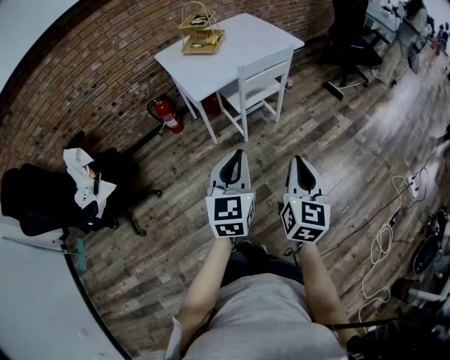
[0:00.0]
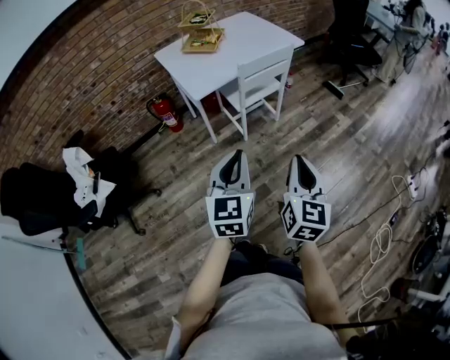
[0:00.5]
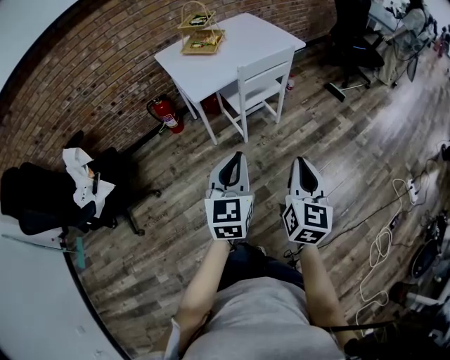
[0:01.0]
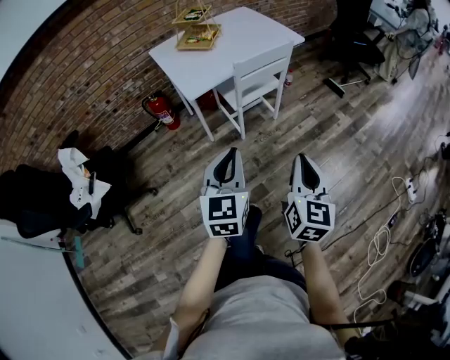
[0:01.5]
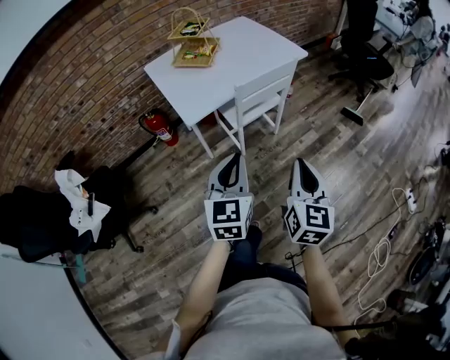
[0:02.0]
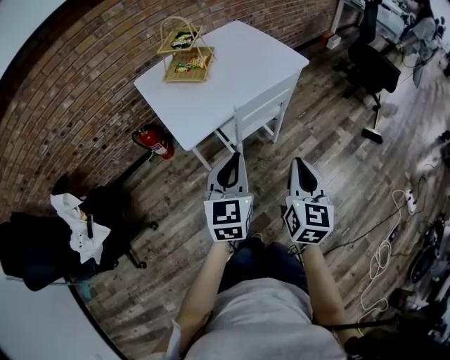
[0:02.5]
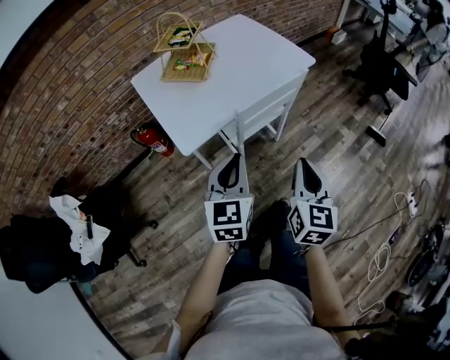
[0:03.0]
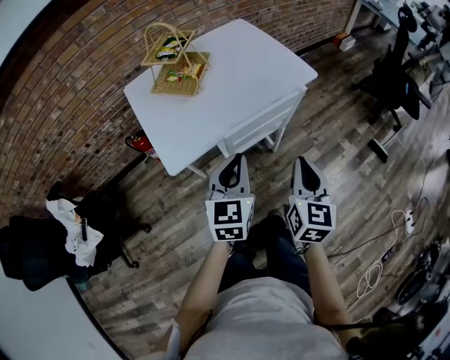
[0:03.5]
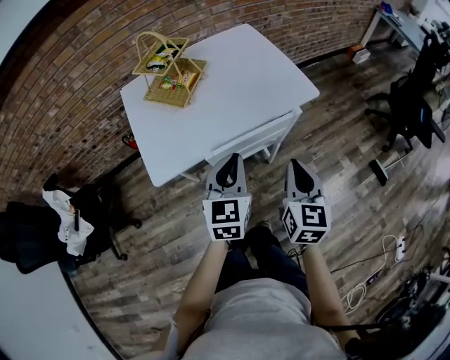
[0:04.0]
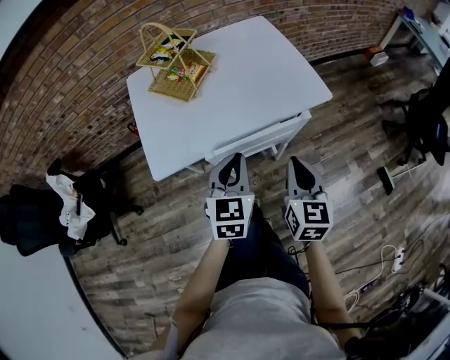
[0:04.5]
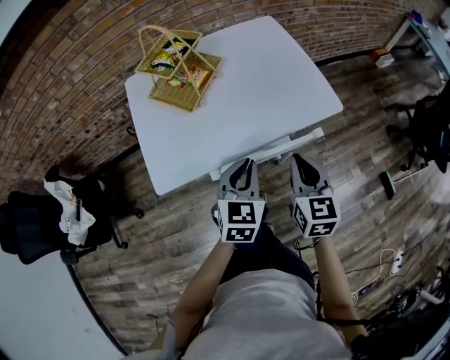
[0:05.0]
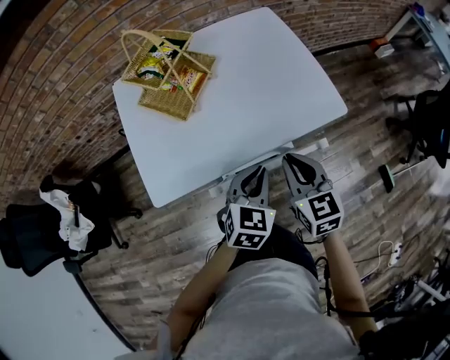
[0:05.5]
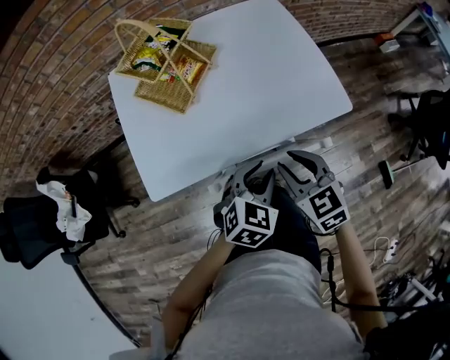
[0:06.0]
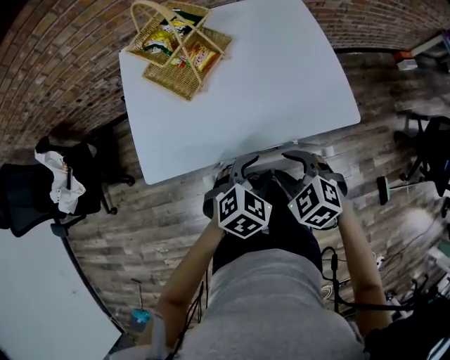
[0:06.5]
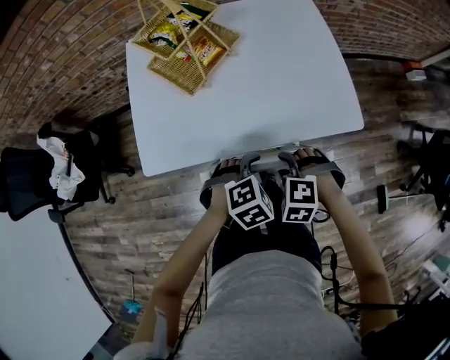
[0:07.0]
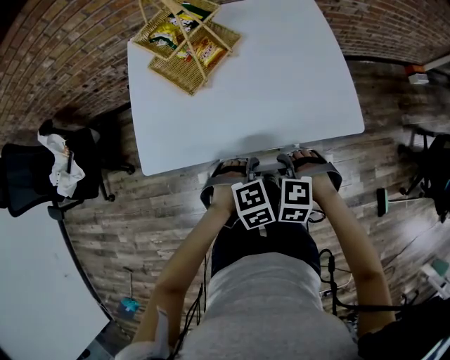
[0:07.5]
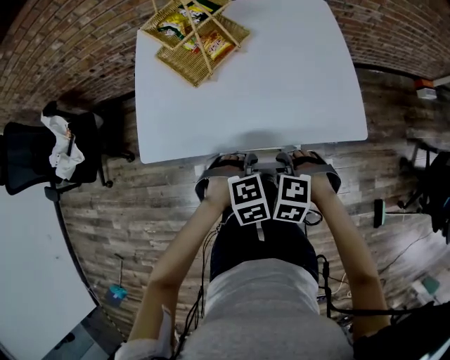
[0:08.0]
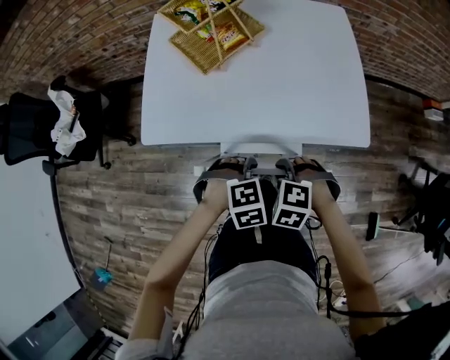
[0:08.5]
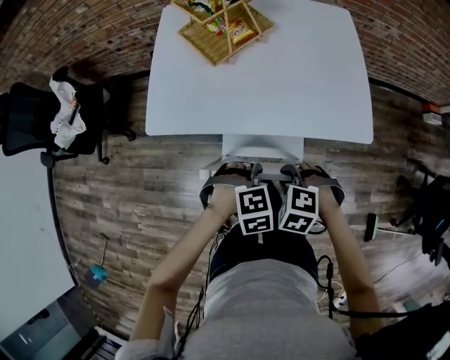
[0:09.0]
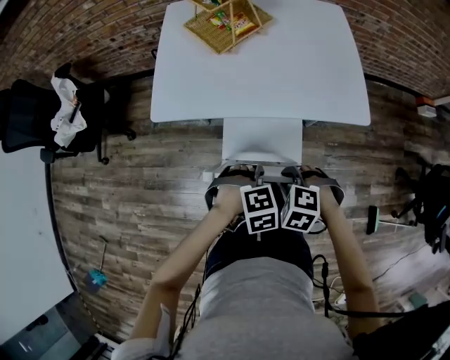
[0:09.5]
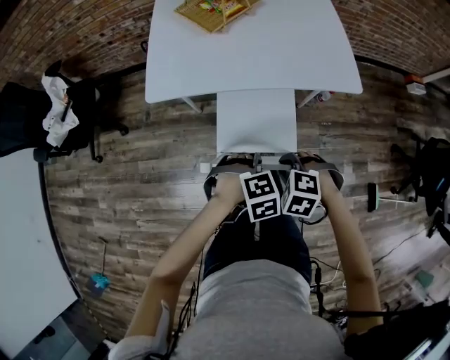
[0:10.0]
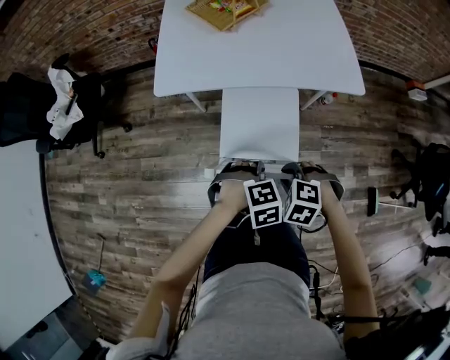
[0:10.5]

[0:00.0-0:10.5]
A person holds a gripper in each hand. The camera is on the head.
0:00.0 to 0:02.0: The two grippers go roughly 15 cm forward.
0:02.0 to 0:04.0: The grippers both shift forward by some 35 cm.
0:04.0 to 0:06.5: The right gripper is displaced forward and downward by some 20 cm, points its fingers approximately 40 degrees further downward, and opens up, while the left gripper heads downward, forward and to the right, covering some 15 cm, angles its fingers downward, by approximately 30 degrees, and opens its fingers.
0:06.5 to 0:08.5: Both grippers move downward, roughly 5 cm. The right gripper rotates approximately 40 degrees, and closes its fingers, while the left gripper changes its angle by some 30 degrees, and closes its fingers.
0:08.5 to 0:10.5: The left gripper ends up approximately 20 cm from where it was. Meanwhile the right gripper moves approximately 20 cm.

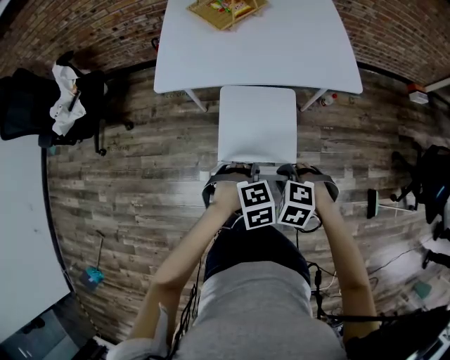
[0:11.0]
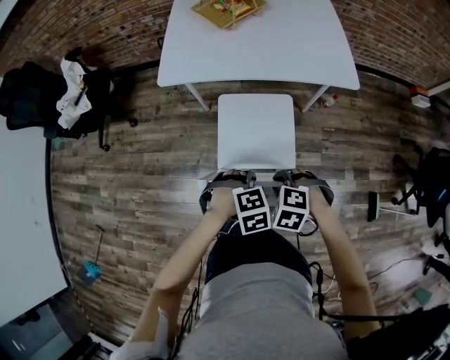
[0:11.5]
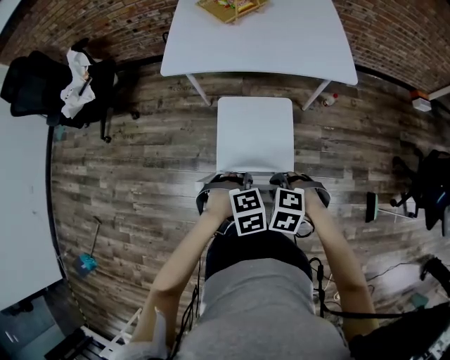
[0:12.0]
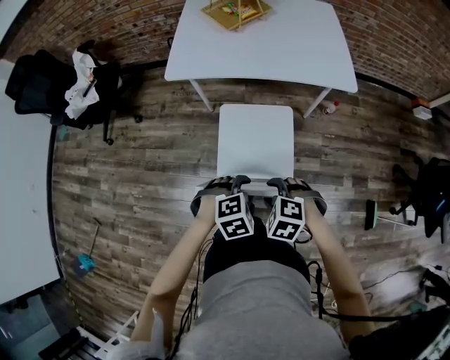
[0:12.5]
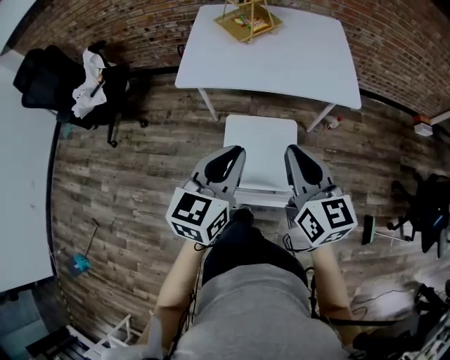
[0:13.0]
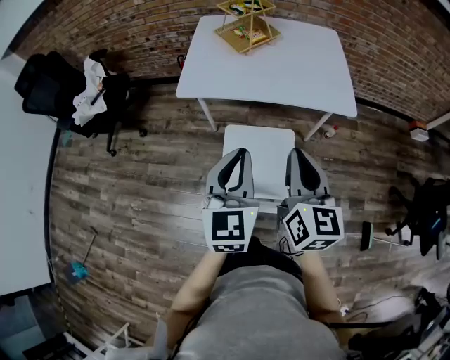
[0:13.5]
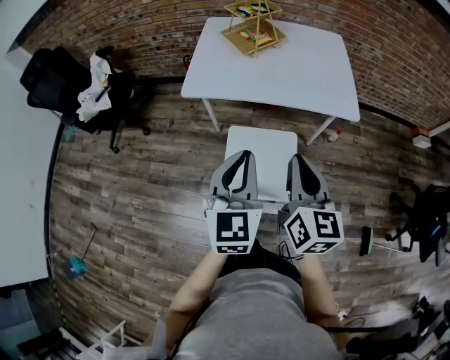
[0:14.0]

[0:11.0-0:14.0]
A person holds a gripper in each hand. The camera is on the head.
0:11.0 to 0:12.5: The left gripper changes place by approximately 10 cm, and opens its fingers; the right gripper moves some 10 cm, and opens.
0:12.5 to 0:14.0: The two grippers go roughly 25 cm upward and forward. The left gripper angles its fingers upward, by some 50 degrees, and closes up. Meanwhile the right gripper tips its fingers upward by approximately 60 degrees, and closes up.

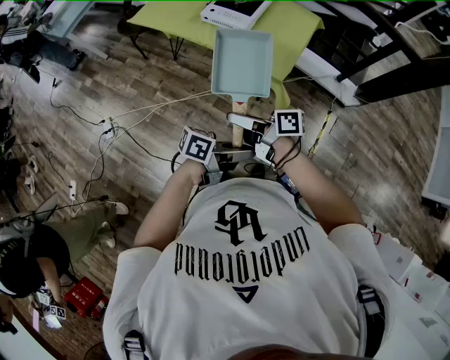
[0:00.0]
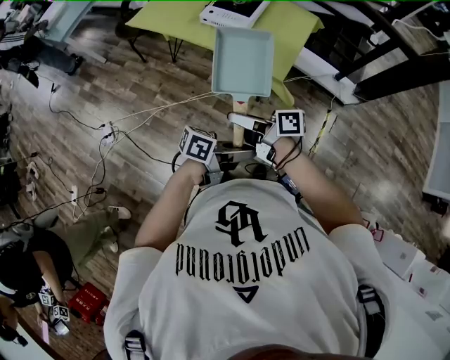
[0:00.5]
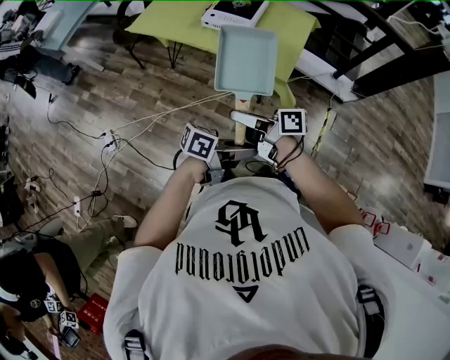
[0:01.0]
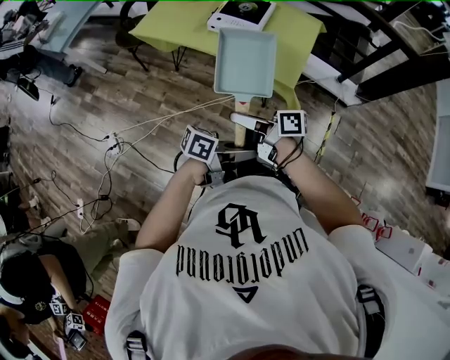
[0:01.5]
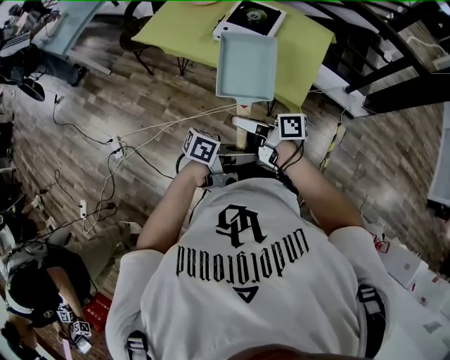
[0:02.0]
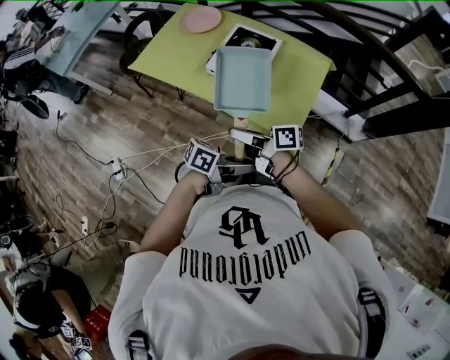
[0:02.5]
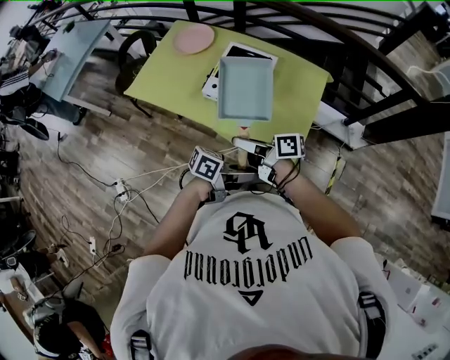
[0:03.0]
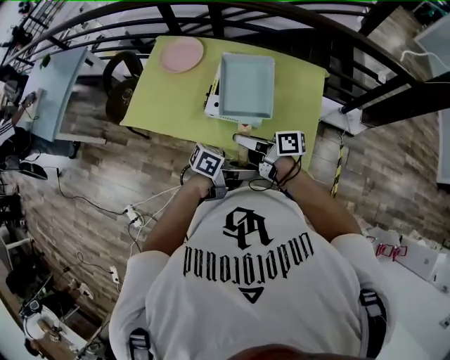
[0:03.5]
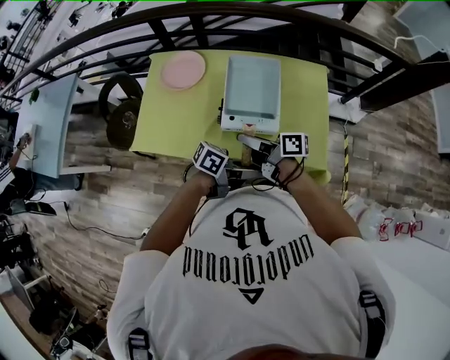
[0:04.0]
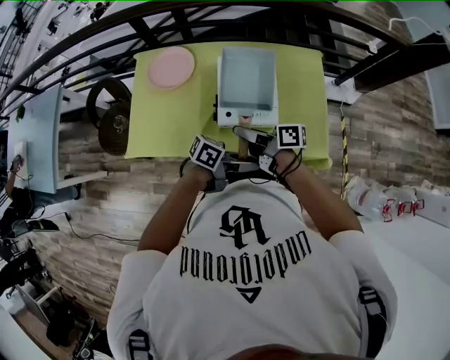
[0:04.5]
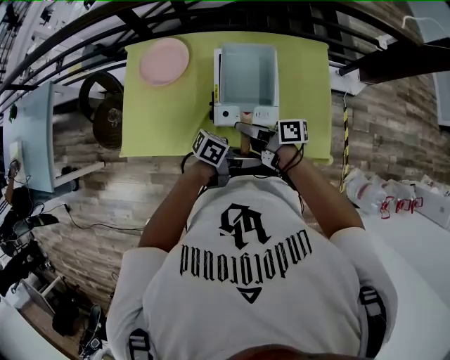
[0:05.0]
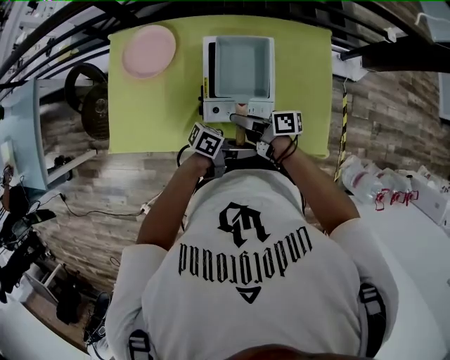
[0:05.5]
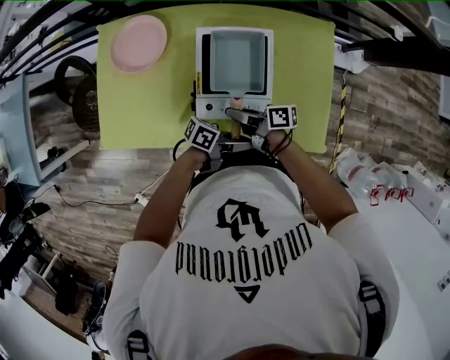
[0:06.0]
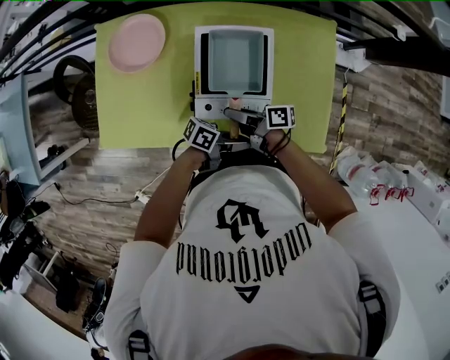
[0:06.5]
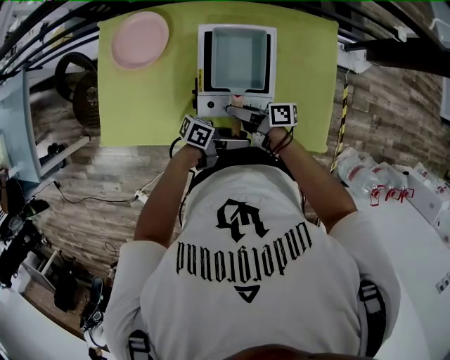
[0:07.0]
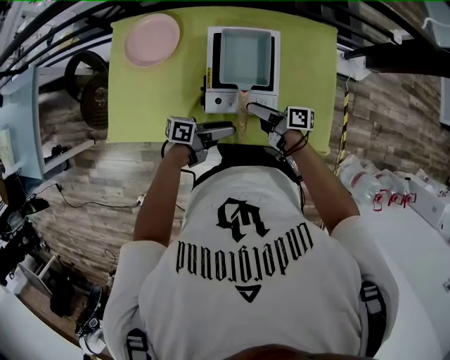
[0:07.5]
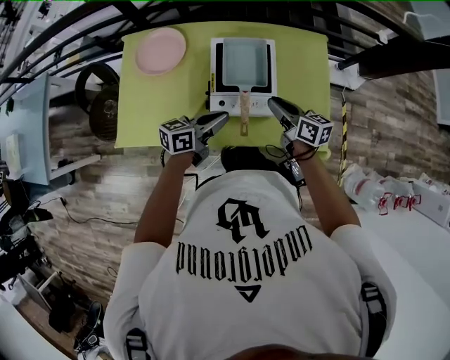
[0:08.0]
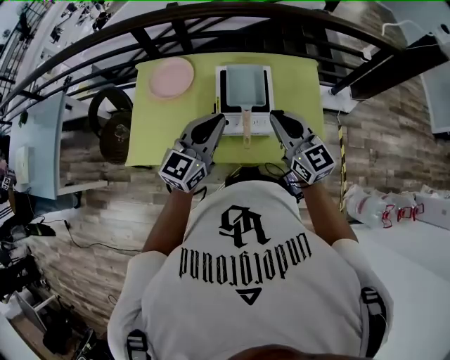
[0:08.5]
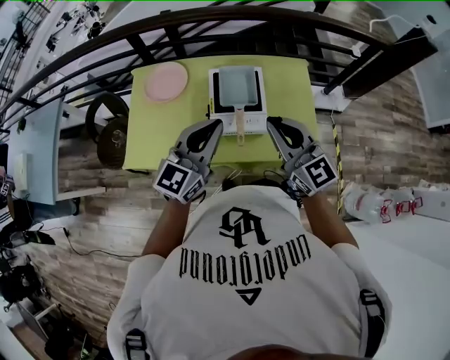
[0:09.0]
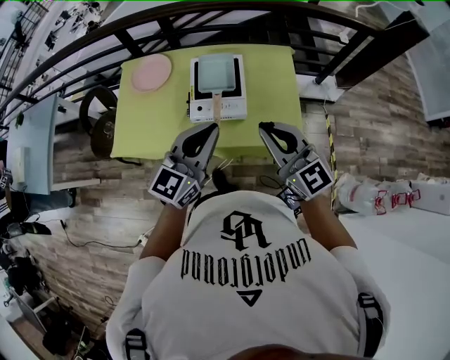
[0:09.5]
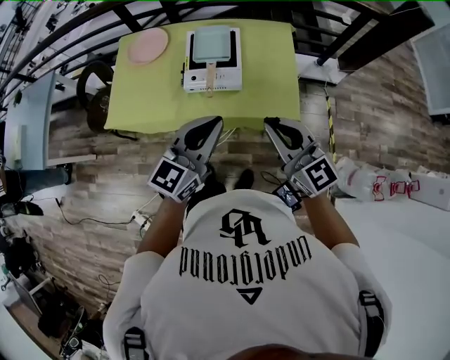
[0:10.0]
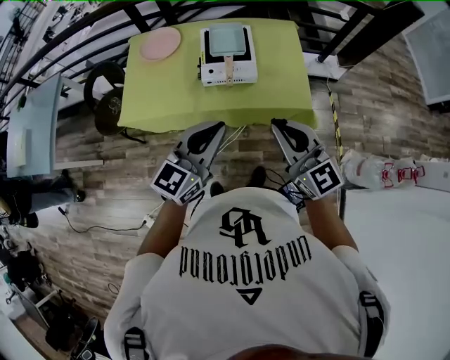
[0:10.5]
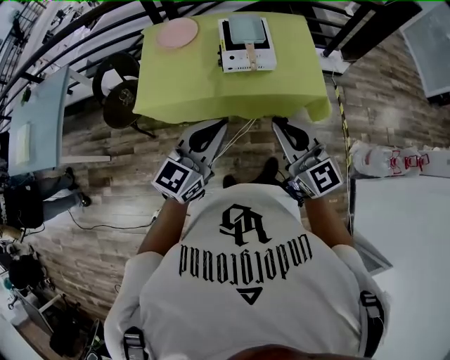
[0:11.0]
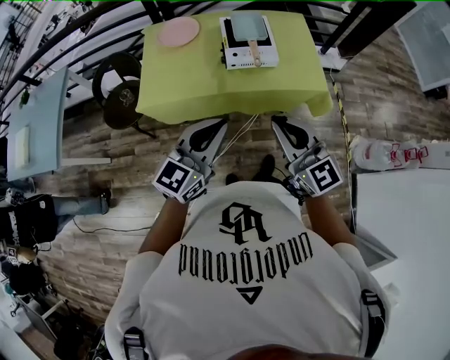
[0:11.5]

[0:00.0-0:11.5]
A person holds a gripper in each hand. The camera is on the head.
0:00.0 to 0:02.0: The left gripper changes place by roughly 15 cm; the right gripper ends up approximately 15 cm from where it was.
0:02.0 to 0:04.0: The right gripper changes place by some 40 cm, and swivels approximately 20 degrees, while the left gripper moves approximately 40 cm, and swivels about 30 degrees.
0:04.0 to 0:06.0: The two grippers go about 20 cm downward.
0:06.0 to 0:07.5: The right gripper opens, while the left gripper shifts by about 10 cm, and opens up.
0:07.5 to 0:09.5: Both grippers travel together upward, some 35 cm. The right gripper rotates around the line of its fingers by approximately 80 degrees, counterclockwise from behind, and closes its fingers, while the left gripper rolls clockwise, seen from behind, by approximately 70 degrees, and closes up.
0:09.5 to 0:11.5: Both grippers travel together backward and to the left, about 30 cm.

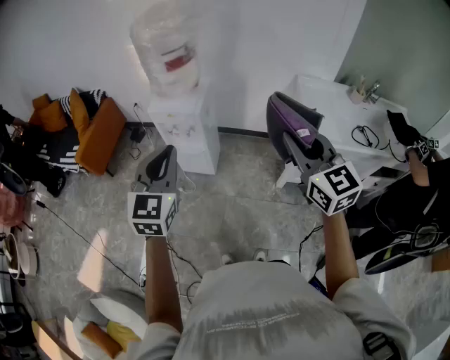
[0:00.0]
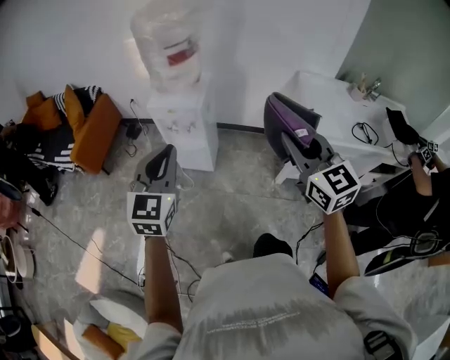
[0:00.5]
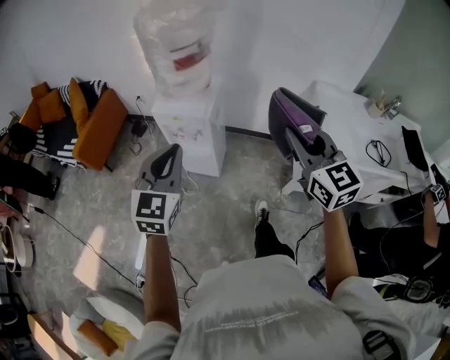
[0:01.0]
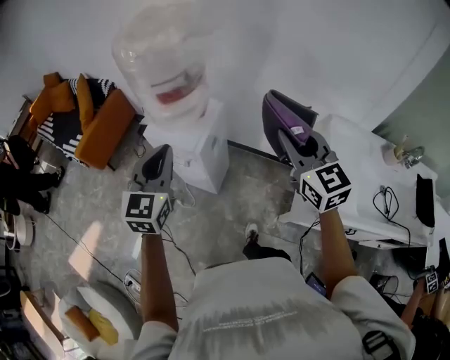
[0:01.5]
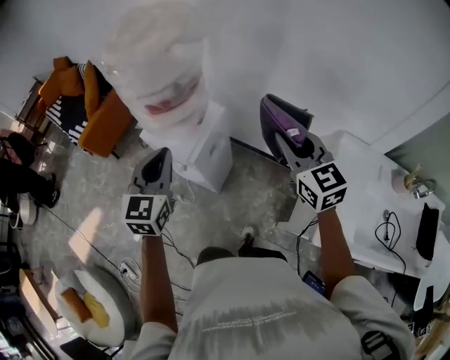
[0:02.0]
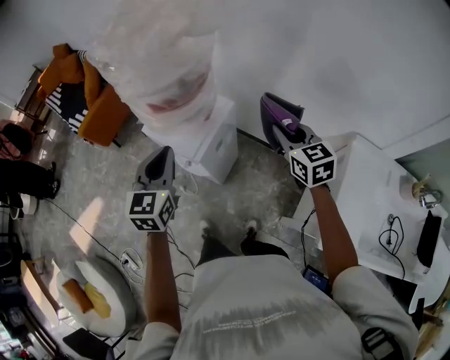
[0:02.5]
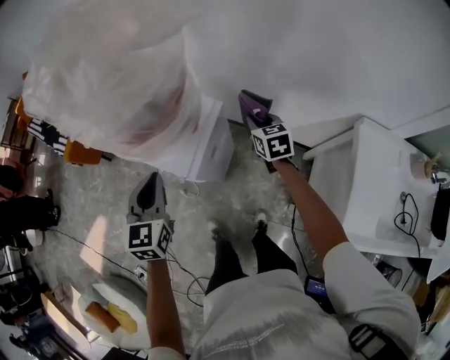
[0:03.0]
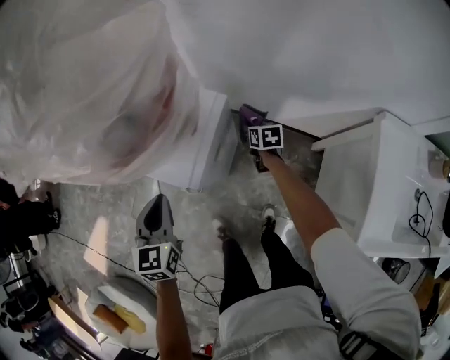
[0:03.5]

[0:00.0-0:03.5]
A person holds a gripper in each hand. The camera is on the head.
0:00.0 to 0:02.0: The two grippers go some 40 cm forward. The left gripper turns by approximately 20 degrees.
0:02.0 to 0:03.5: The right gripper moves downward and forward, roughly 50 cm, and tips its fingers downward by approximately 40 degrees; the left gripper goes some 20 cm downward.
